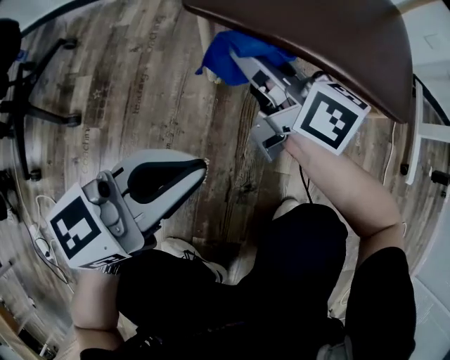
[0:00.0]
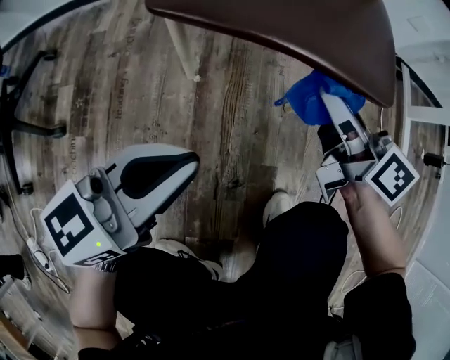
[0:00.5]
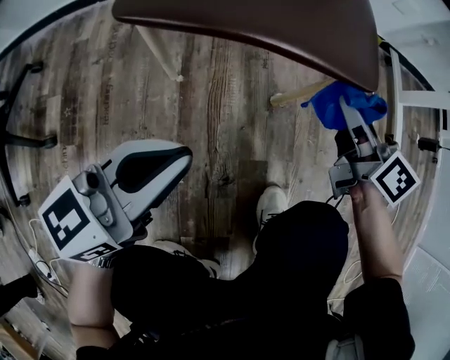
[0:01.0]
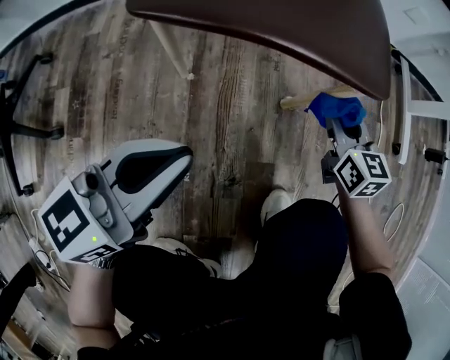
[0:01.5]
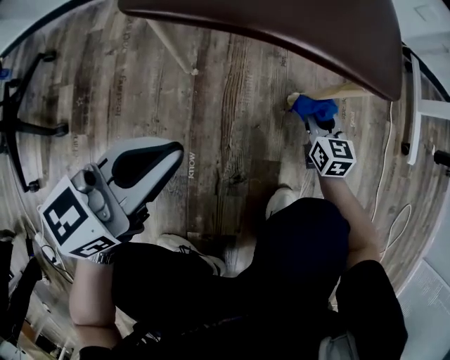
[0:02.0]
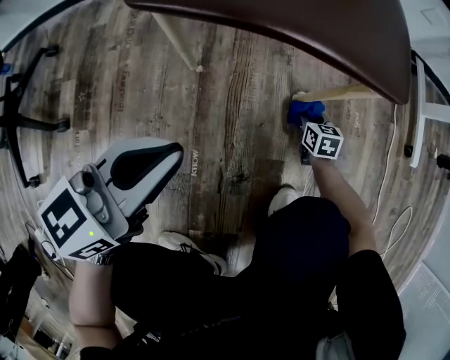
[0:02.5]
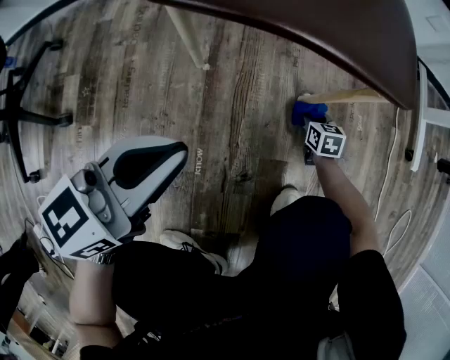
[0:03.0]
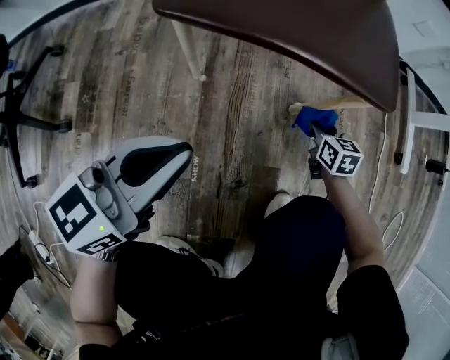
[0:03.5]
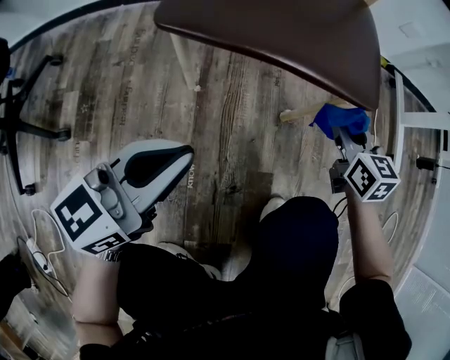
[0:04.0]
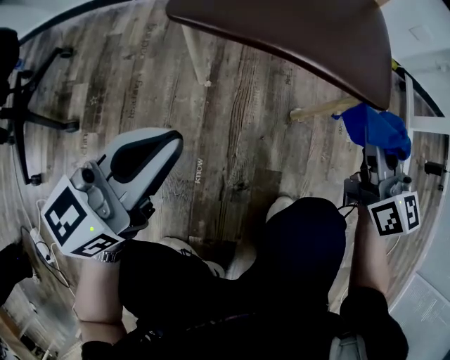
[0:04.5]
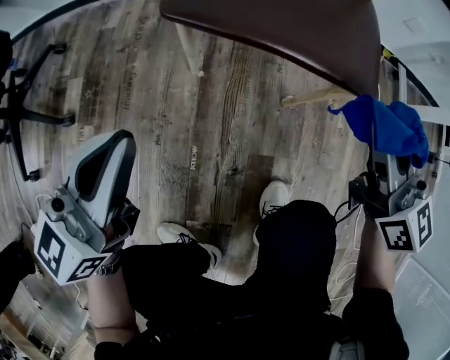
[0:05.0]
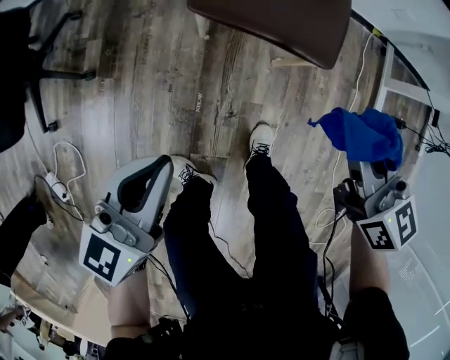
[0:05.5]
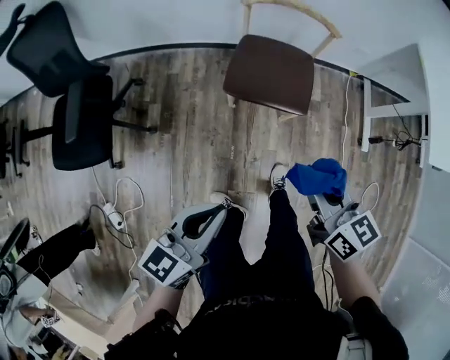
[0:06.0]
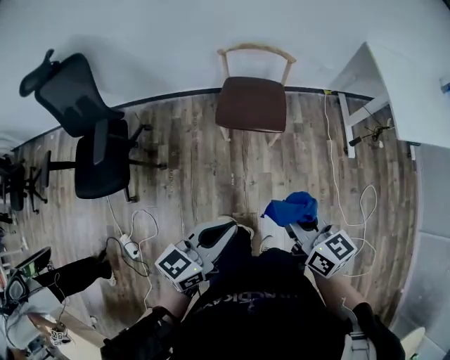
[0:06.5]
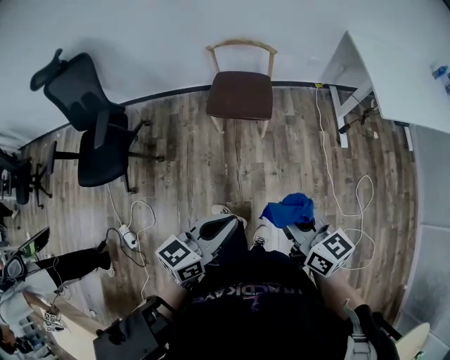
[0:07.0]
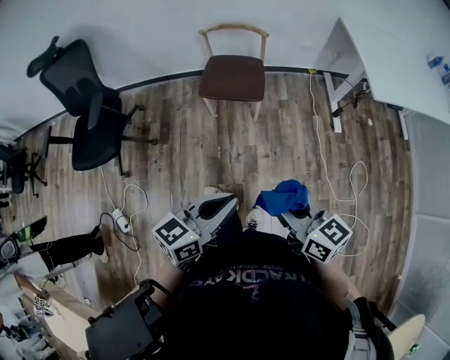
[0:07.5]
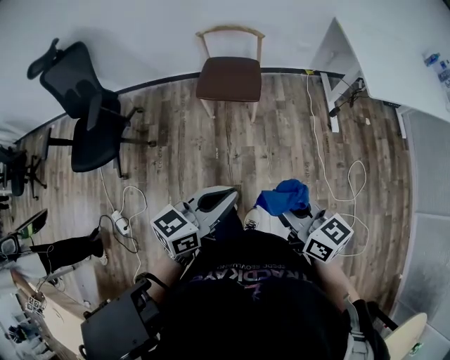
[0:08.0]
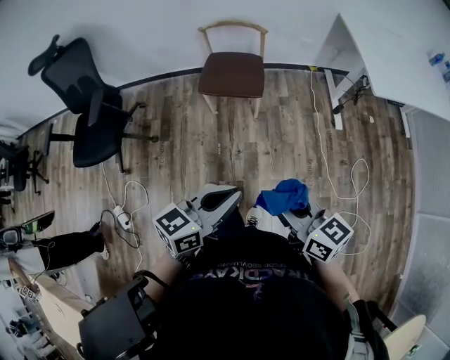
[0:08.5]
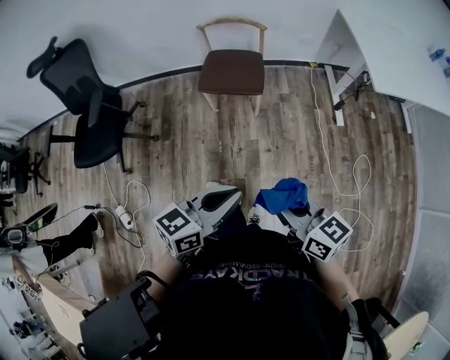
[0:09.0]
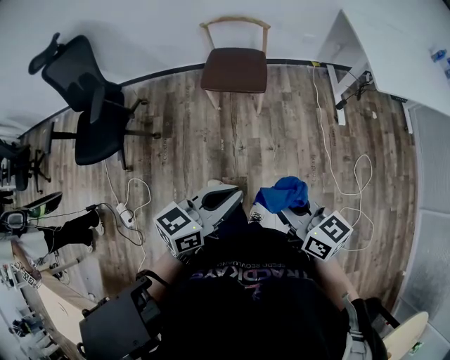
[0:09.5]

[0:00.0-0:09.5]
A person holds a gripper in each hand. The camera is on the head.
0:00.0 to 0:02.0: The right gripper travels to the right and downward by roughly 35 cm, and turns by about 50 degrees.
0:02.0 to 0:04.0: The right gripper goes about 15 cm upward.
0:04.0 to 0:05.5: Both grippers move upward, about 30 cm. The left gripper rotates roughly 20 degrees.
0:05.5 to 0:07.5: Both grippers are carried backward, about 40 cm. Both grippers travel together upward, about 35 cm. The left gripper turns by about 20 degrees.
0:07.5 to 0:09.5: The grippers stay close to where they were, moving slightly.

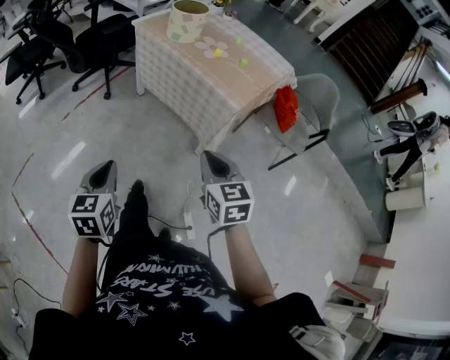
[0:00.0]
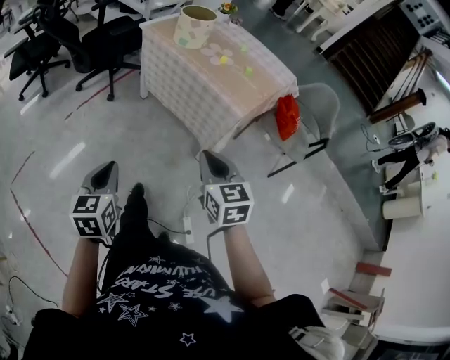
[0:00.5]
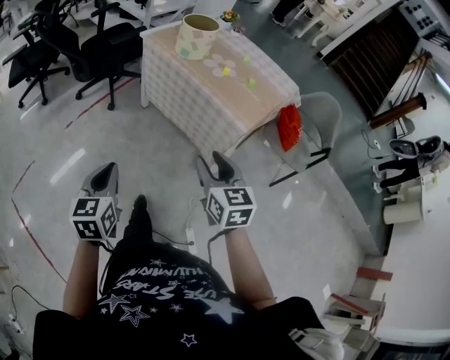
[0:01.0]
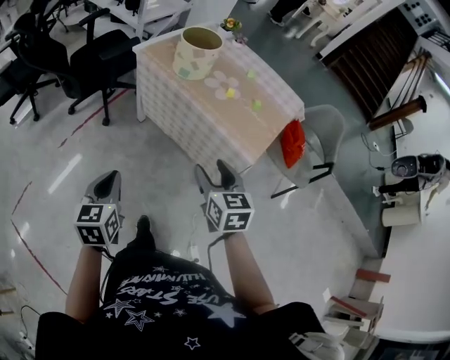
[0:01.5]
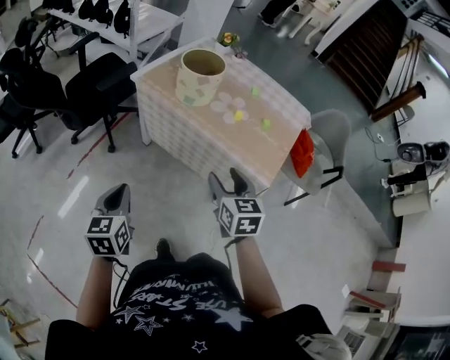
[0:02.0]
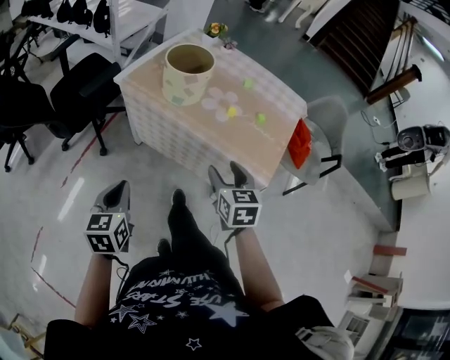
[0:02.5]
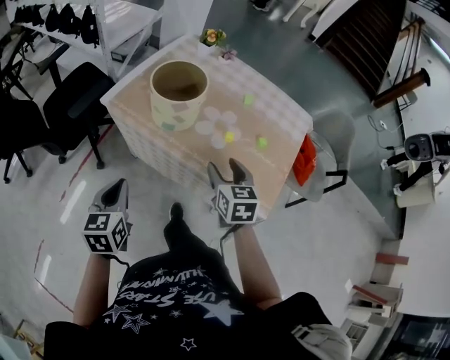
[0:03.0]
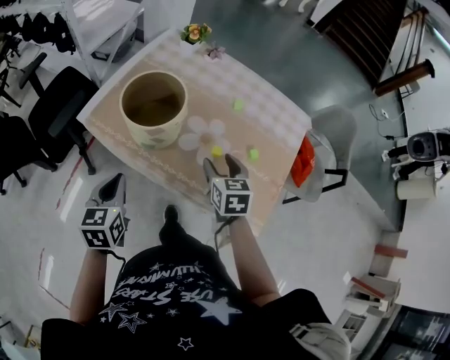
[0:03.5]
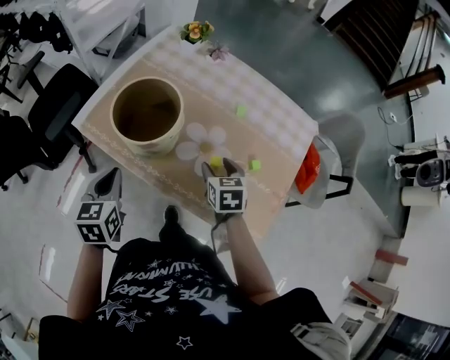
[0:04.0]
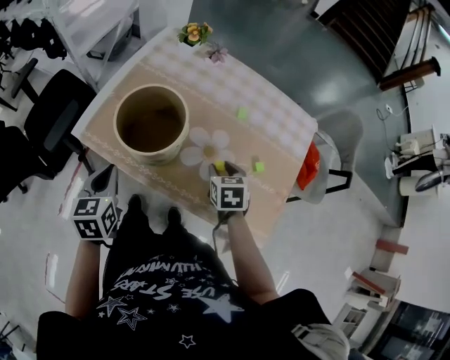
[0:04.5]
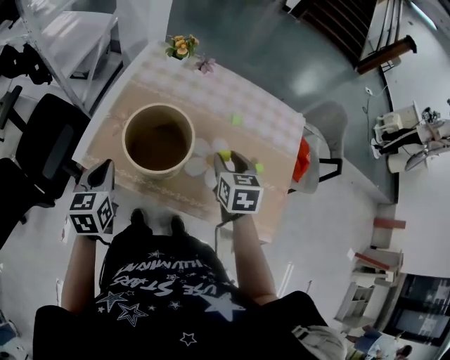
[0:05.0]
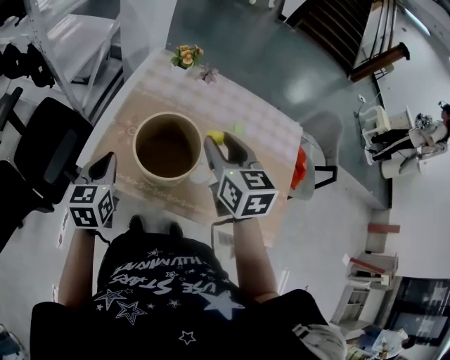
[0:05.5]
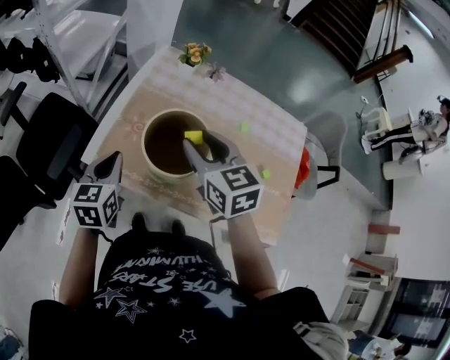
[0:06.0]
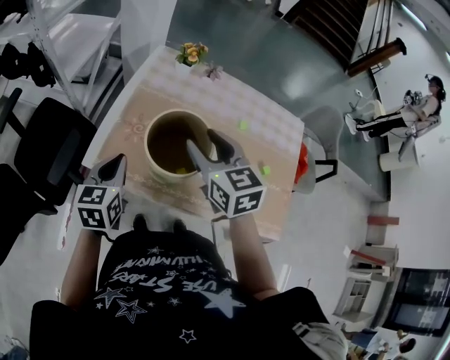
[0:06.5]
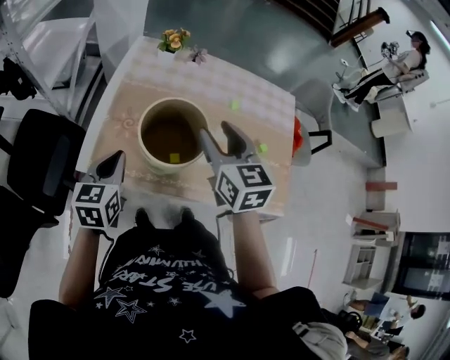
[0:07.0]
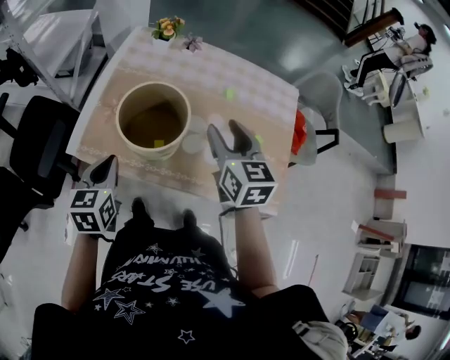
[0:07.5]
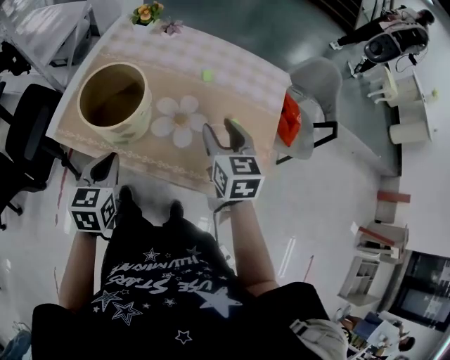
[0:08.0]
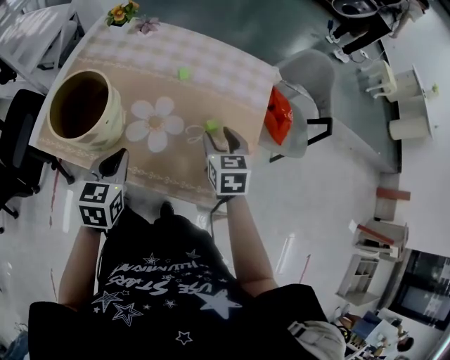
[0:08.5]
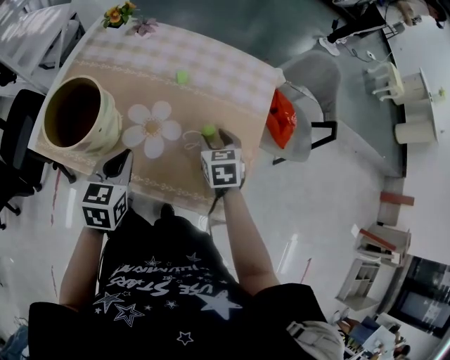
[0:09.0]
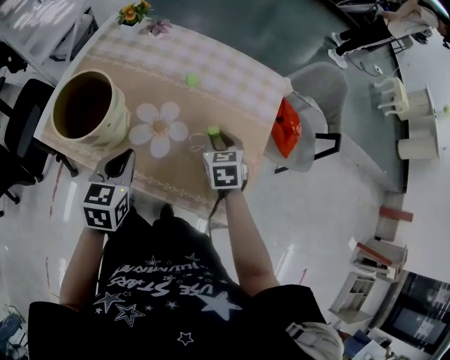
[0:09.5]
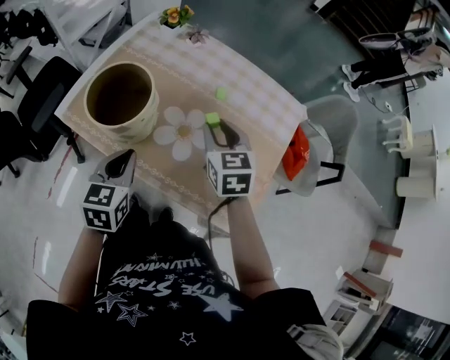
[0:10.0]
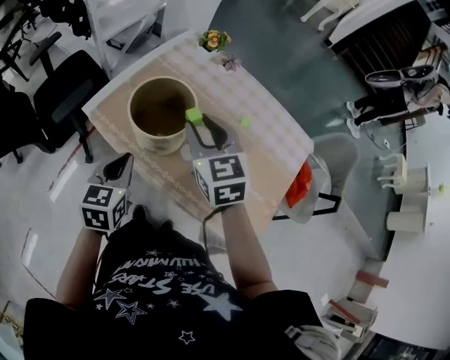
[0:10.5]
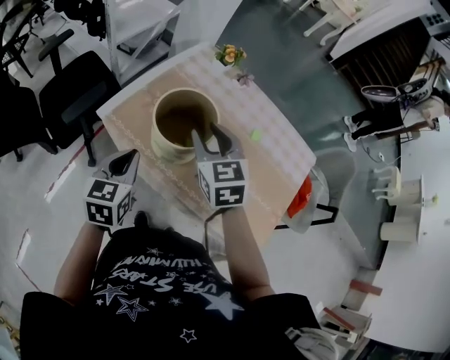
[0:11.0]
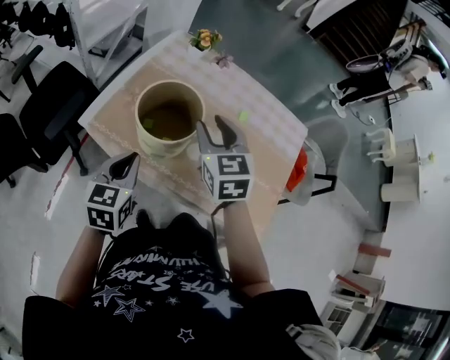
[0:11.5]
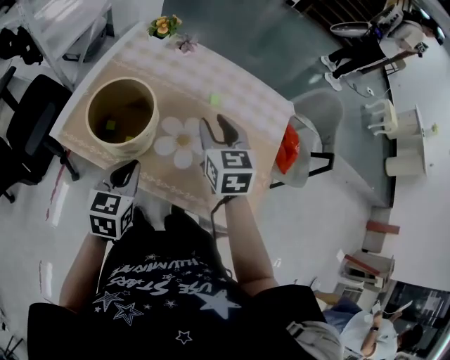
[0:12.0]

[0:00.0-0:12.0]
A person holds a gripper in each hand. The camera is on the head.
0:00.0 to 0:02.0: The grippers both shift forward by roughly 30 cm. The right gripper opens.
0:02.0 to 0:04.0: The right gripper is displaced forward and downward by approximately 35 cm. The left gripper shifts approximately 35 cm forward.
0:04.0 to 0:06.0: The left gripper heads forward and to the left, covering roughly 15 cm, while the right gripper moves upward and to the left, roughly 25 cm, and rotates about 20 degrees.
0:06.0 to 0:08.0: The right gripper heads to the right, covering about 25 cm; the left gripper goes approximately 20 cm to the right and backward.
0:08.0 to 0:10.0: The left gripper is displaced to the right by roughly 5 cm. Meanwhile the right gripper travels forward by some 5 cm, and reaches approximately 15 cm downward, then returns.
0:10.0 to 0:12.0: The left gripper travels to the left and back again, roughly 15 cm each way. Meanwhile the right gripper travels to the left and back again, roughly 20 cm each way.

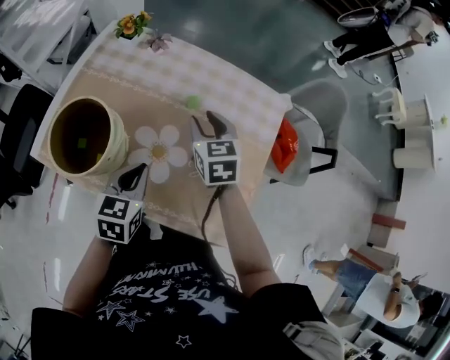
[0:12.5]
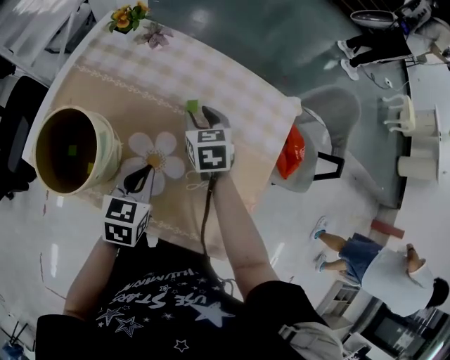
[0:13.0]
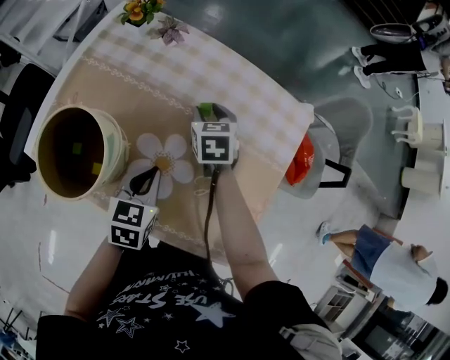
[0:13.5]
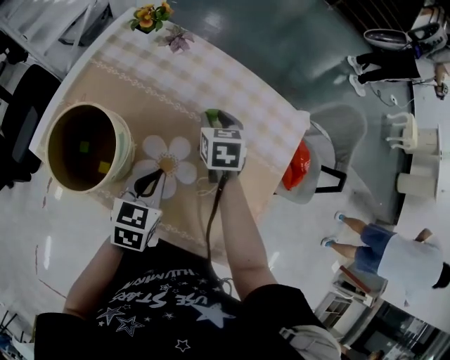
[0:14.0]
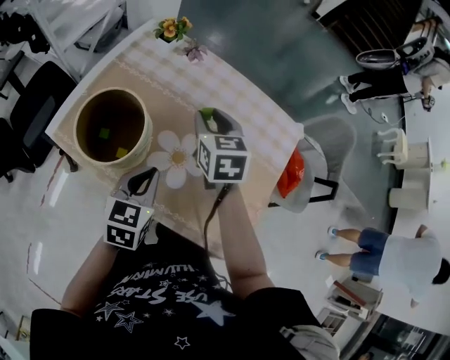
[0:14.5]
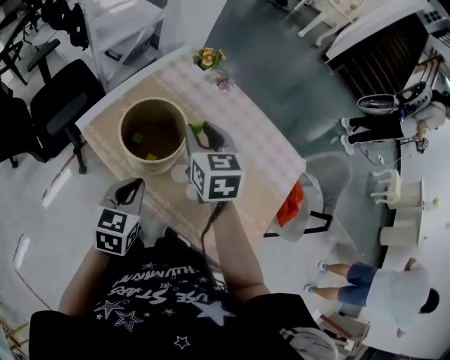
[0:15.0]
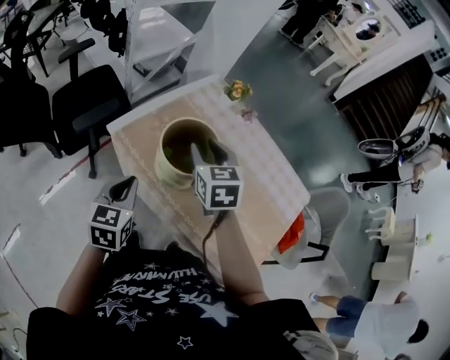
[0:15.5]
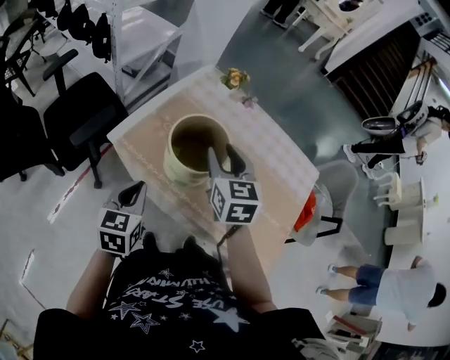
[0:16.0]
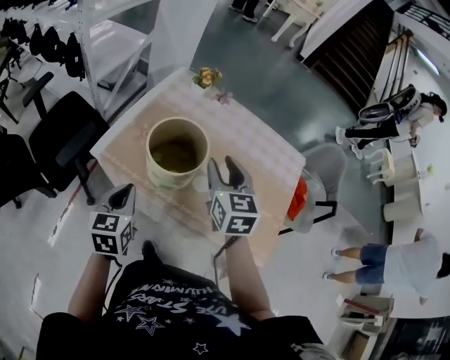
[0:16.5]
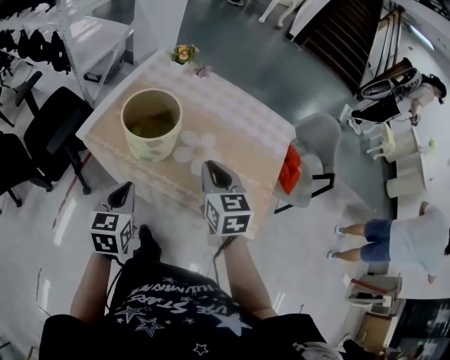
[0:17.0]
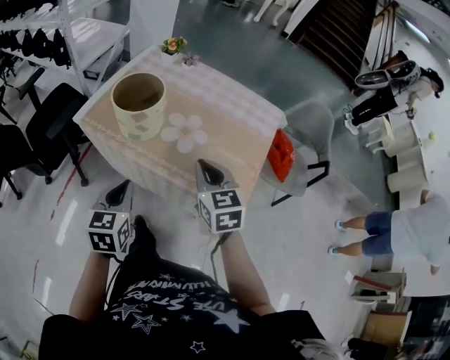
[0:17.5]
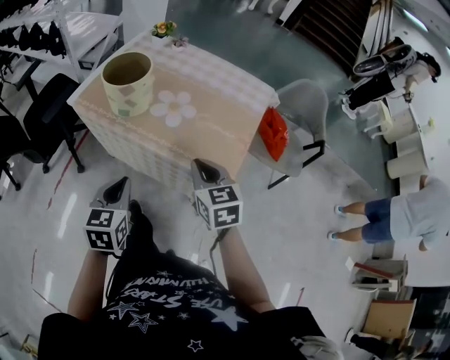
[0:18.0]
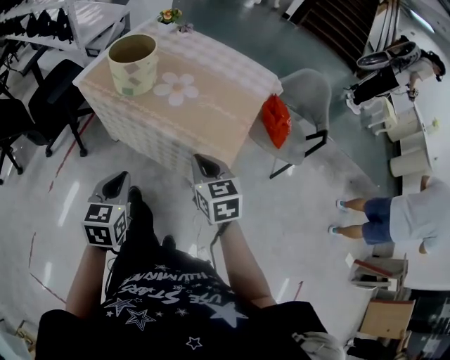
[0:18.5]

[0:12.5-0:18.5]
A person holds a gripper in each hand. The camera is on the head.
0:12.5 to 0:14.5: The right gripper shifts about 10 cm to the left, and moves approximately 10 cm downward and comes back.
0:14.5 to 0:16.5: The right gripper is displaced to the left, backward and upward by about 15 cm. Meanwhile the left gripper is displaced to the left by some 25 cm.
0:16.5 to 0:18.5: Both grippers travel together backward and to the right, roughly 35 cm. The right gripper closes up.
